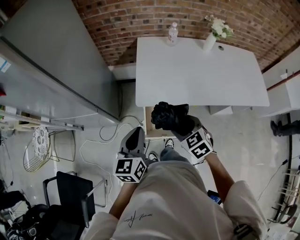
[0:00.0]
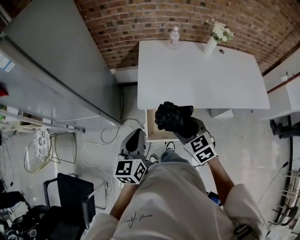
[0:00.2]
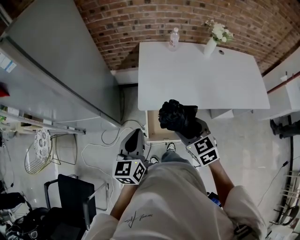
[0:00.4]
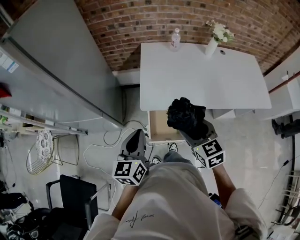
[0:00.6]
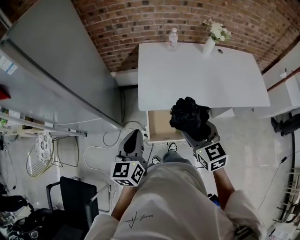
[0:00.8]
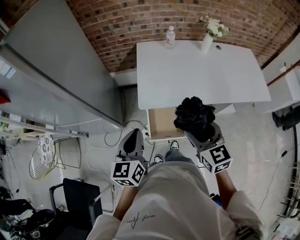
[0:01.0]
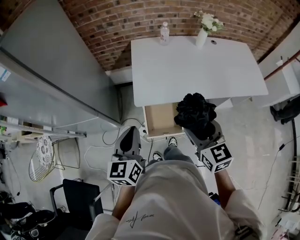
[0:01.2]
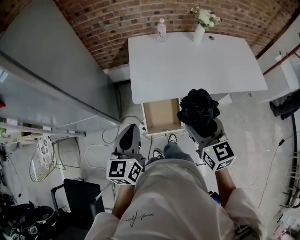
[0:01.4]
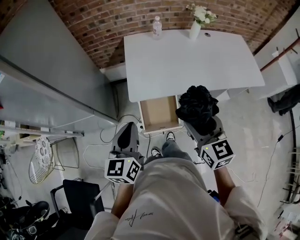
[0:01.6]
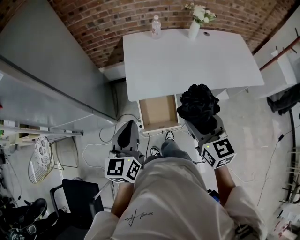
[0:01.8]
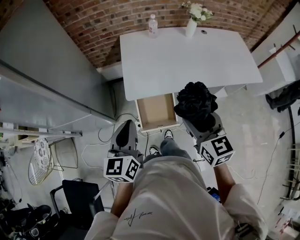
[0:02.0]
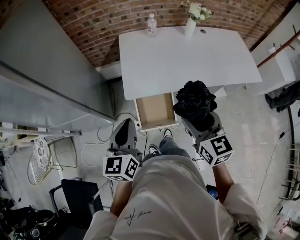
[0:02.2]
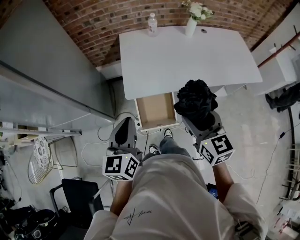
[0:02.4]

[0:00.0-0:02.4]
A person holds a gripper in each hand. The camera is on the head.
0:00.0 to 0:01.2: The right gripper is displaced upward by roughly 10 cm, and changes its angle by about 30 degrees.
0:01.2 to 0:02.4: The grippers move only a little.

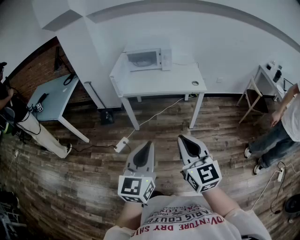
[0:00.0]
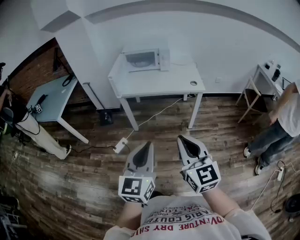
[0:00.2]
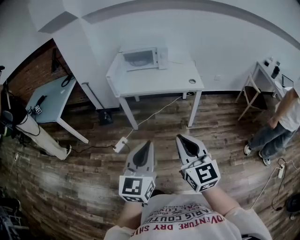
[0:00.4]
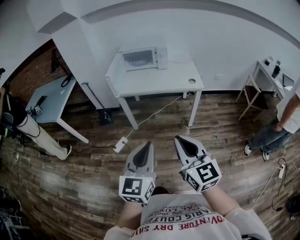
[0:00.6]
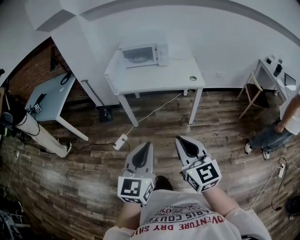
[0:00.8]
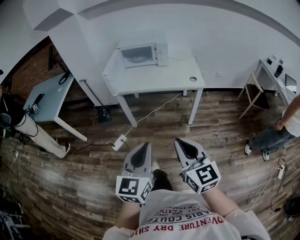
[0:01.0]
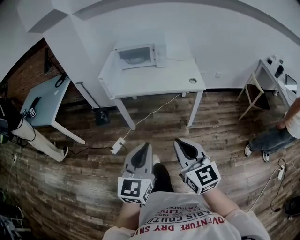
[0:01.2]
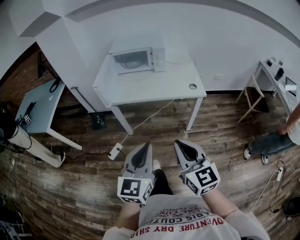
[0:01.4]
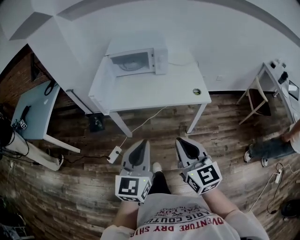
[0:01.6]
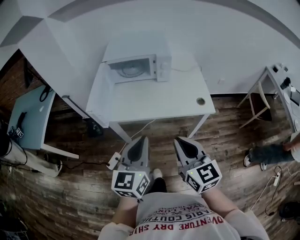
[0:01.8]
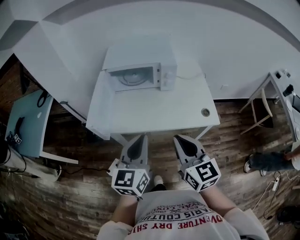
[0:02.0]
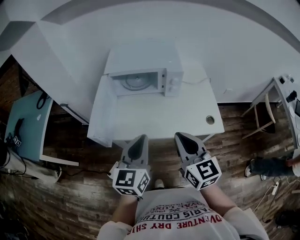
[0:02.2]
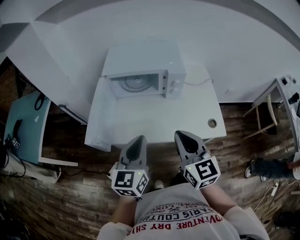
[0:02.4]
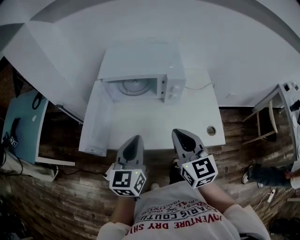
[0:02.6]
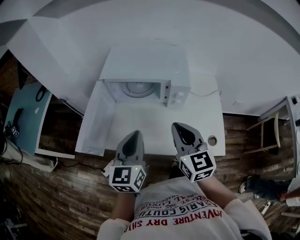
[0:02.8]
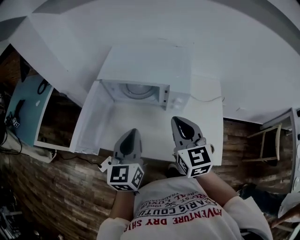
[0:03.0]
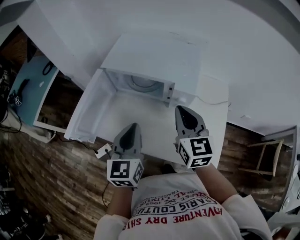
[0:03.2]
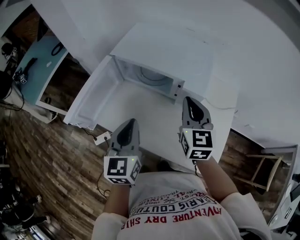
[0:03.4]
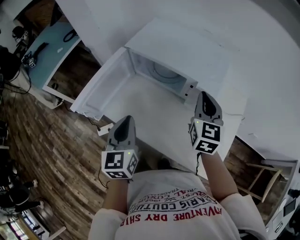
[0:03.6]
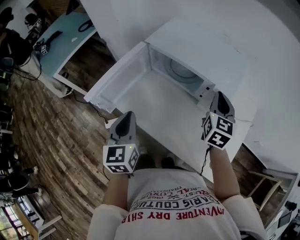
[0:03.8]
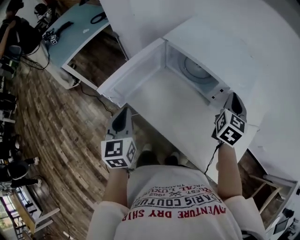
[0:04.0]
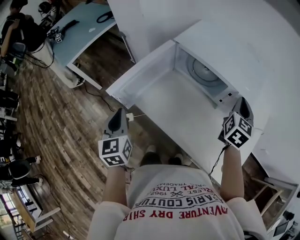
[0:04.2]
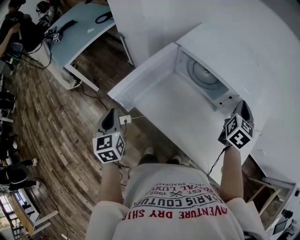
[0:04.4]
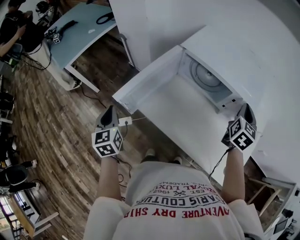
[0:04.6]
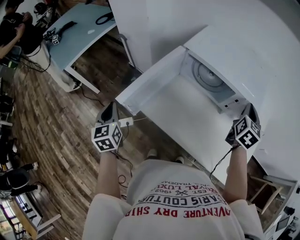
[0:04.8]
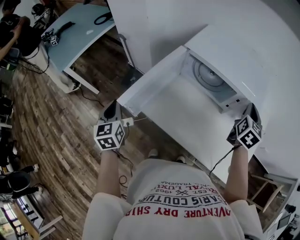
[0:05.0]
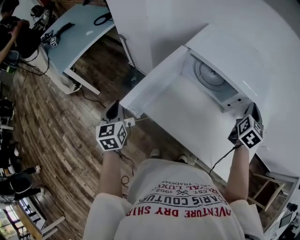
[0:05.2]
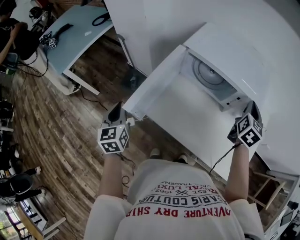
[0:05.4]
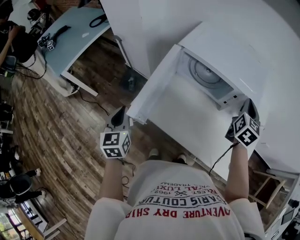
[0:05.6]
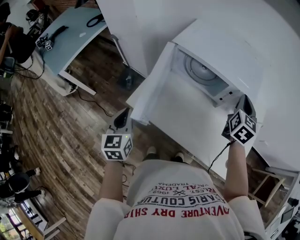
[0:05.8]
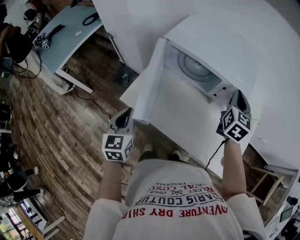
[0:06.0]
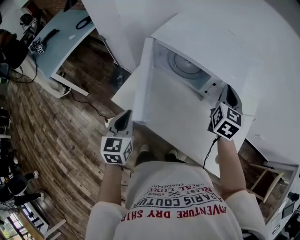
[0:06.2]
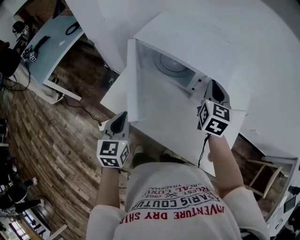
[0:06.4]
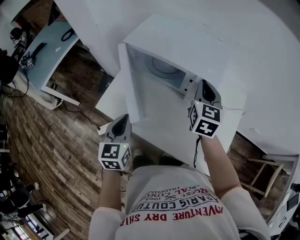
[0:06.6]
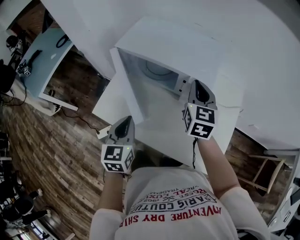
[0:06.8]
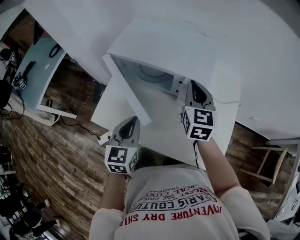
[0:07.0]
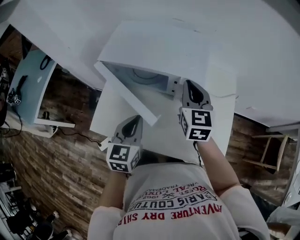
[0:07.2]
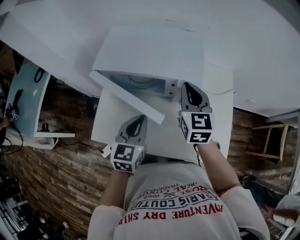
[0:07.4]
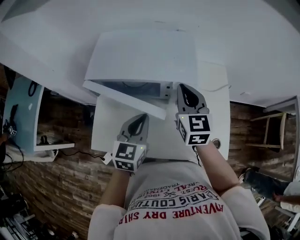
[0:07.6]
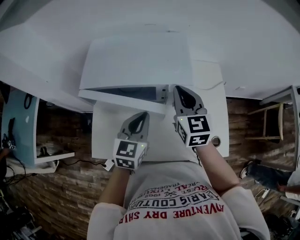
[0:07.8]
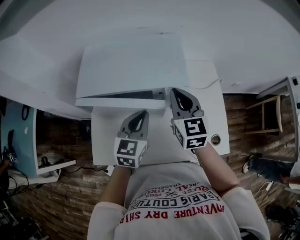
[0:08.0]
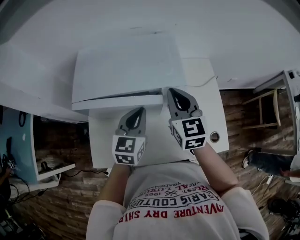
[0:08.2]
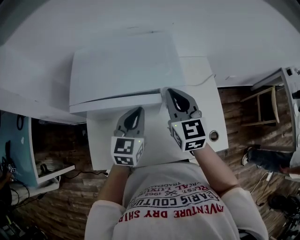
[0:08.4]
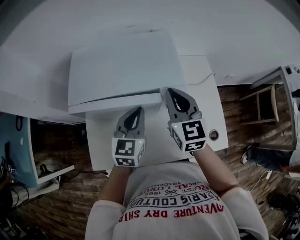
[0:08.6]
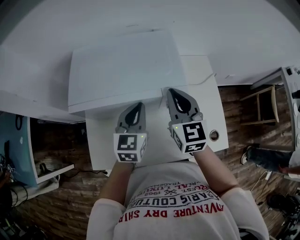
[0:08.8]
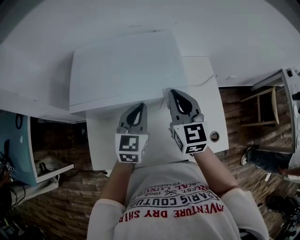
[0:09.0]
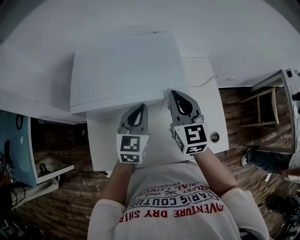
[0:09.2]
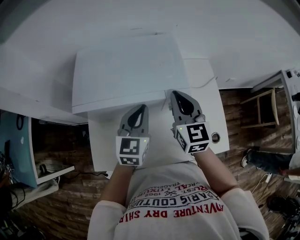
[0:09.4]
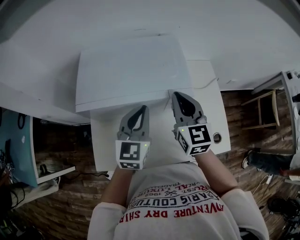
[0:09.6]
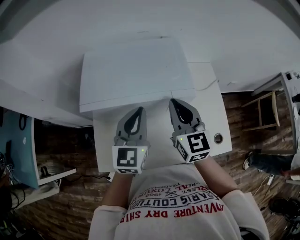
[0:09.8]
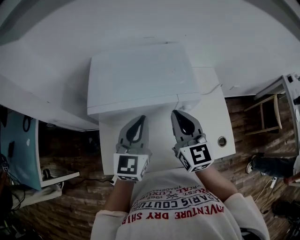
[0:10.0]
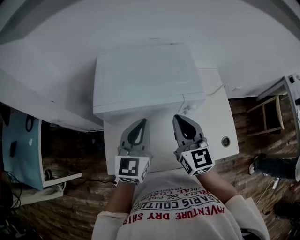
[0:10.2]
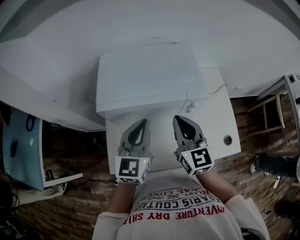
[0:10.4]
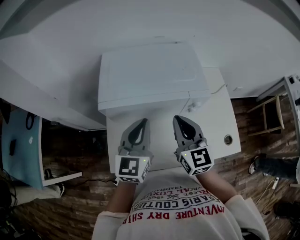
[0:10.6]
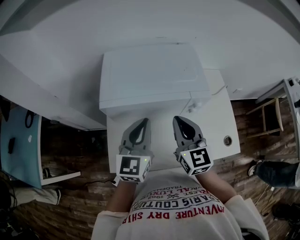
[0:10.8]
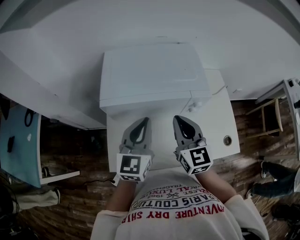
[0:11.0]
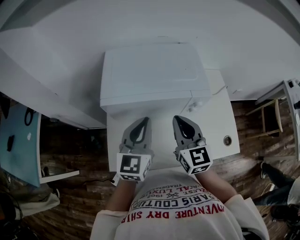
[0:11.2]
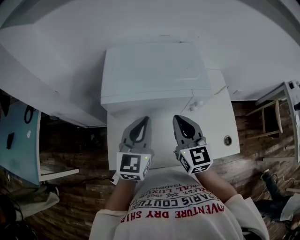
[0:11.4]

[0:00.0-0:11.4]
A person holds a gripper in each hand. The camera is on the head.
0:00.0 to 0:01.4: The grippers both shift forward by some 15 cm.
0:01.4 to 0:02.8: The two grippers travel together, forward, approximately 50 cm.
0:02.8 to 0:04.2: The right gripper is displaced forward and to the right by about 20 cm; the left gripper heads to the left, covering roughly 20 cm, and swivels about 50 degrees.
0:04.2 to 0:05.6: The left gripper moves to the left, about 5 cm.
0:05.6 to 0:07.2: The left gripper goes approximately 30 cm to the right, and turns by some 30 degrees.
0:07.2 to 0:08.6: The left gripper travels forward by approximately 10 cm, and rotates approximately 20 degrees.
0:08.6 to 0:10.0: The right gripper goes some 5 cm backward. Meanwhile the left gripper shifts some 10 cm upward and to the left.
0:10.0 to 0:11.4: The left gripper ends up approximately 5 cm from where it was; the right gripper shifts by about 5 cm.

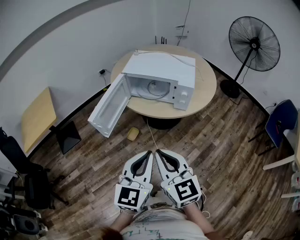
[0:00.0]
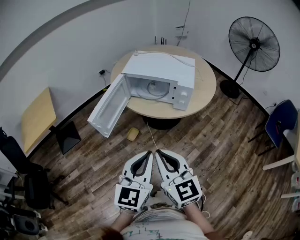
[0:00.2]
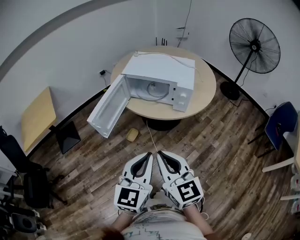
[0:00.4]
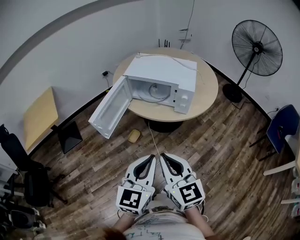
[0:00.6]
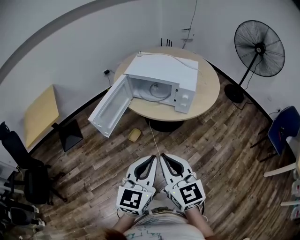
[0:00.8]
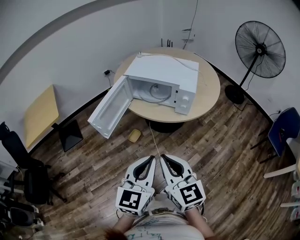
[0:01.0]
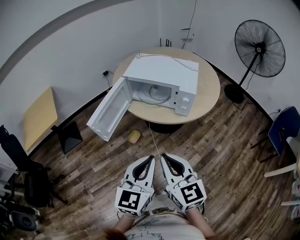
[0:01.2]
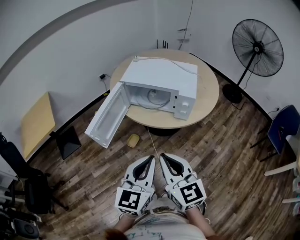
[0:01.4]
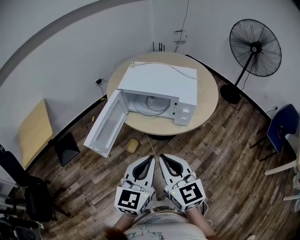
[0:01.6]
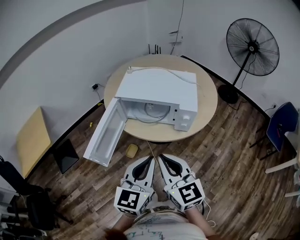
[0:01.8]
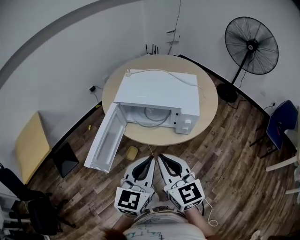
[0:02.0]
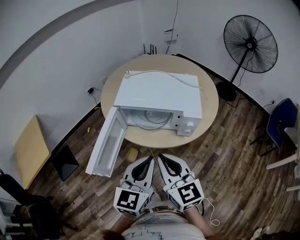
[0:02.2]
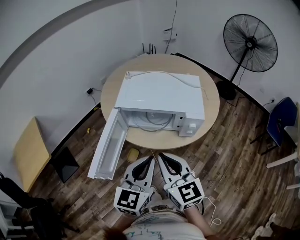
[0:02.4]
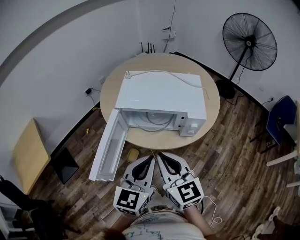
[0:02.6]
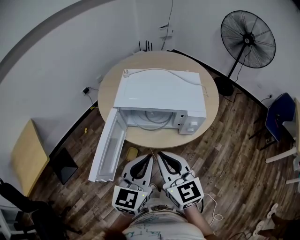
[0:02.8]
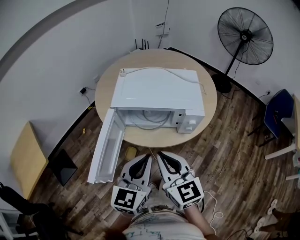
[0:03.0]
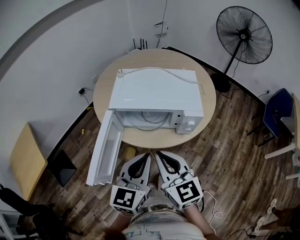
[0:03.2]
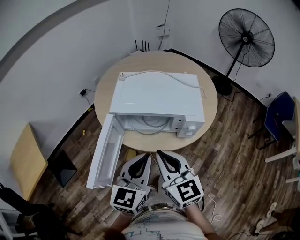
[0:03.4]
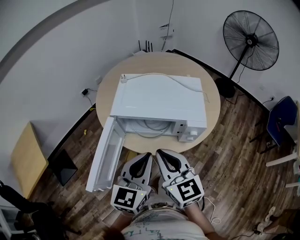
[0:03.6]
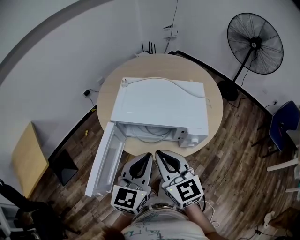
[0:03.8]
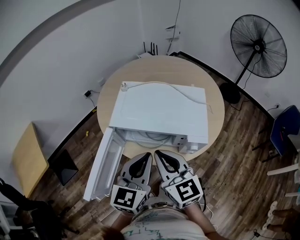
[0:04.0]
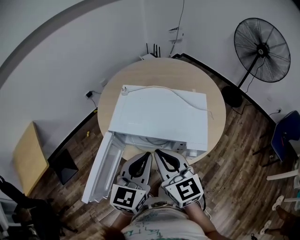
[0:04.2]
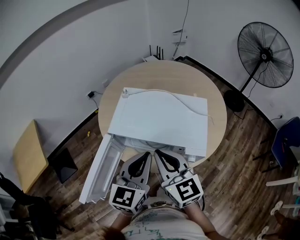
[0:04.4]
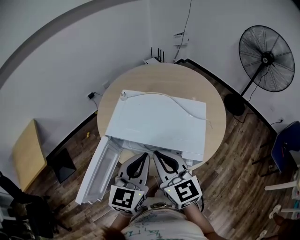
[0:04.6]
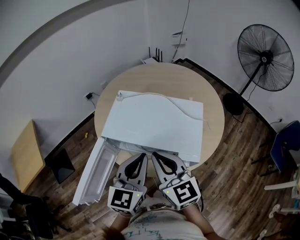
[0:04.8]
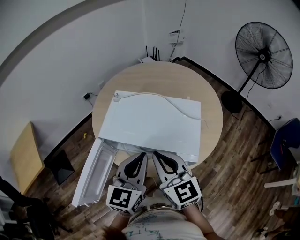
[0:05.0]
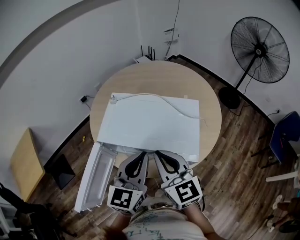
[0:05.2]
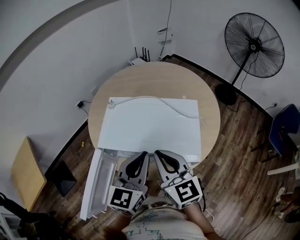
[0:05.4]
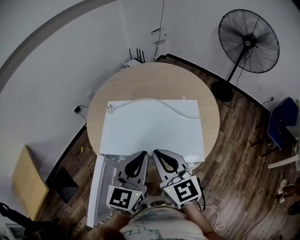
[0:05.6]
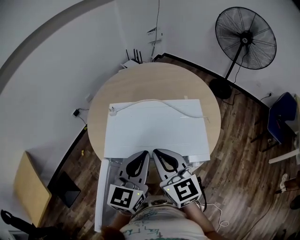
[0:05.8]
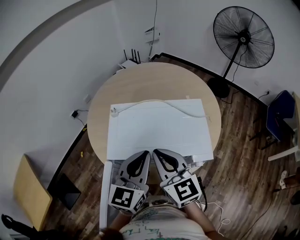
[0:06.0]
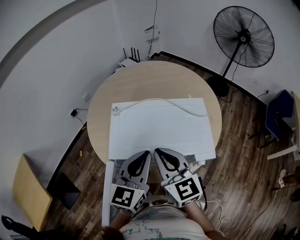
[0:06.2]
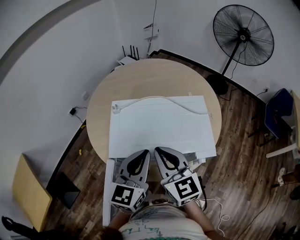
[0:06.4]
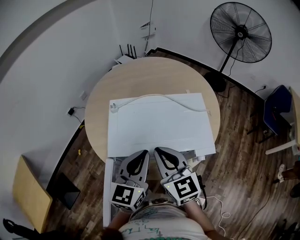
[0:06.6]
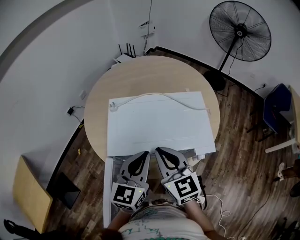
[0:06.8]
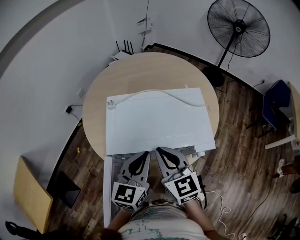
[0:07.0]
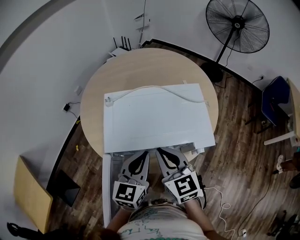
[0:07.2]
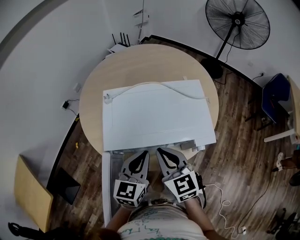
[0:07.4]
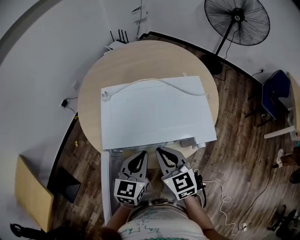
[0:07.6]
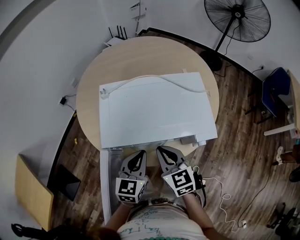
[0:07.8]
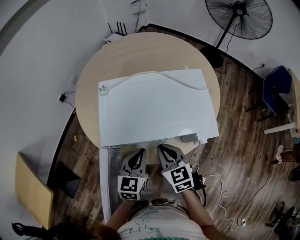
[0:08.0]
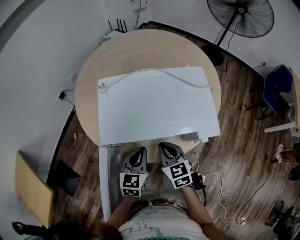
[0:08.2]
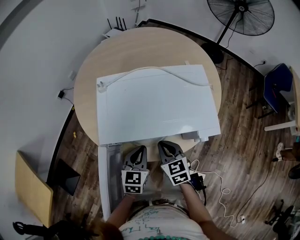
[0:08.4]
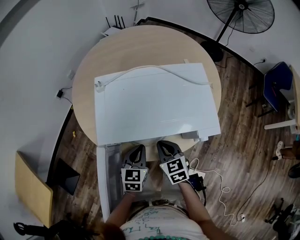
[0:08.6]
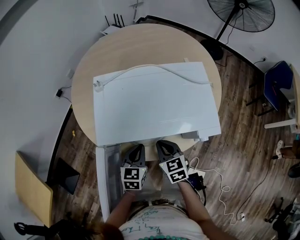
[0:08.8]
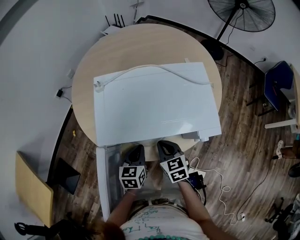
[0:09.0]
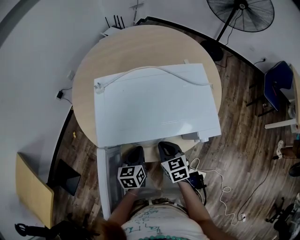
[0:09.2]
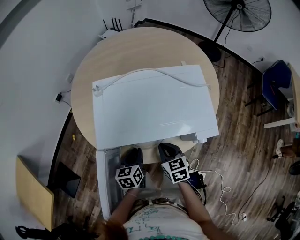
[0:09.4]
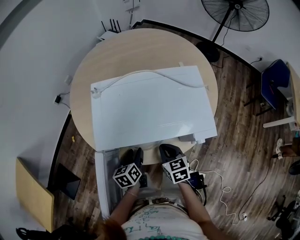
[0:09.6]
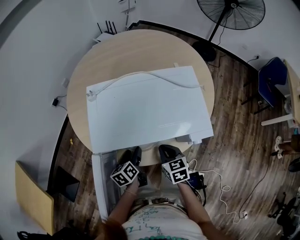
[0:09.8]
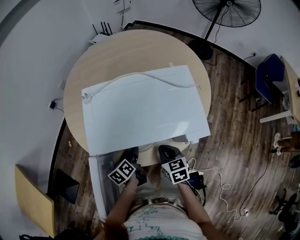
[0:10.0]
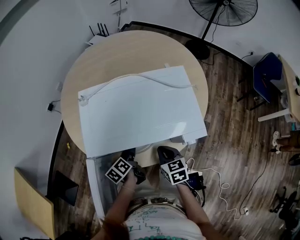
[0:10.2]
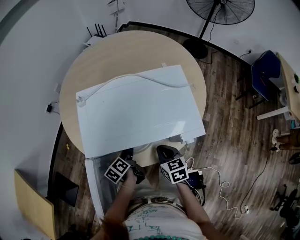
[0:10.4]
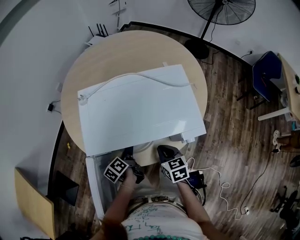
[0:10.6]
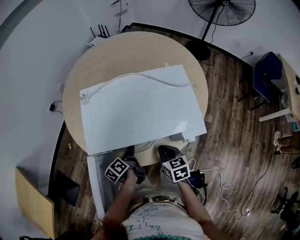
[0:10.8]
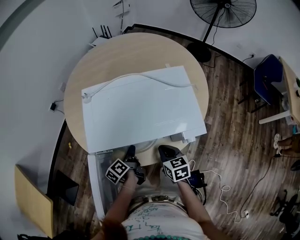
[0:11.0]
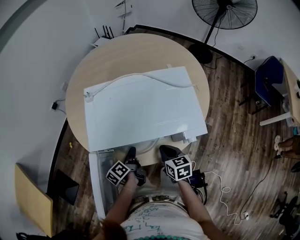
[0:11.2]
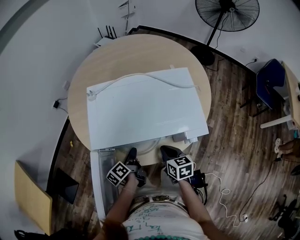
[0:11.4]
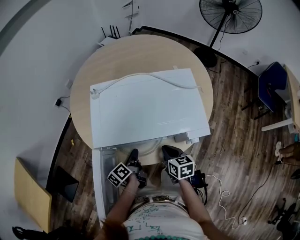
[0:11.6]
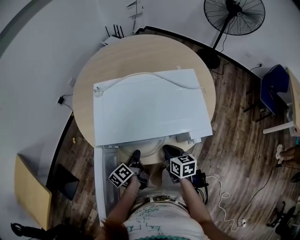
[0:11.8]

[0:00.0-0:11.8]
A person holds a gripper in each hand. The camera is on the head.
0:00.0 to 0:01.4: Both grippers travel together forward, roughly 5 cm.
0:01.4 to 0:03.0: The grippers both shift forward by some 20 cm.
0:03.0 to 0:04.4: The grippers both shift forward by some 15 cm.
0:04.4 to 0:06.0: Both grippers travel together forward, roughly 10 cm.
0:06.0 to 0:07.4: Both grippers travel together downward, about 10 cm.
0:07.4 to 0:08.8: Both grippers travel together downward, roughly 15 cm.
0:08.8 to 0:10.4: The right gripper is displaced to the right by approximately 5 cm; the left gripper heads downward, covering some 5 cm, rolls counterclockwise, seen from behind, by roughly 60 degrees, and opens.
0:10.4 to 0:11.8: The left gripper closes up.
